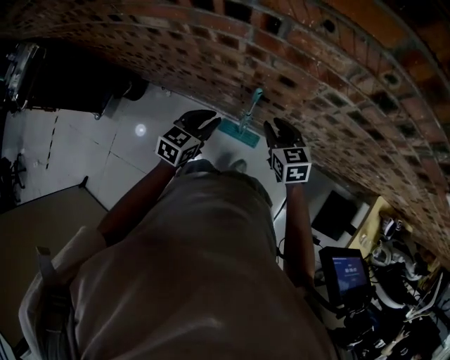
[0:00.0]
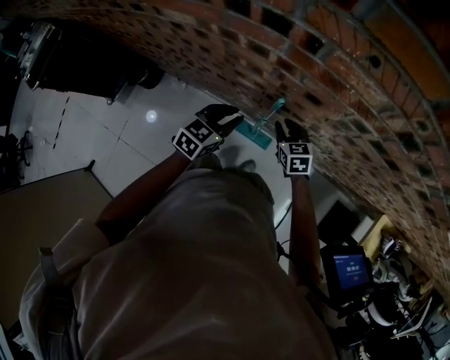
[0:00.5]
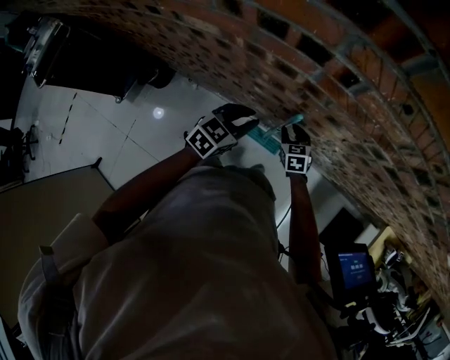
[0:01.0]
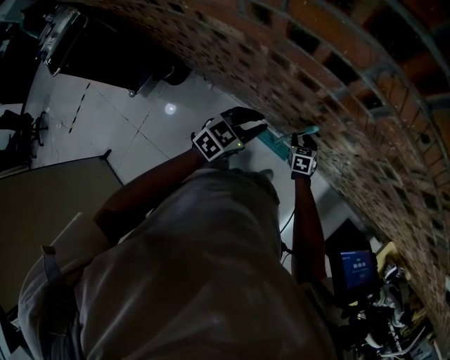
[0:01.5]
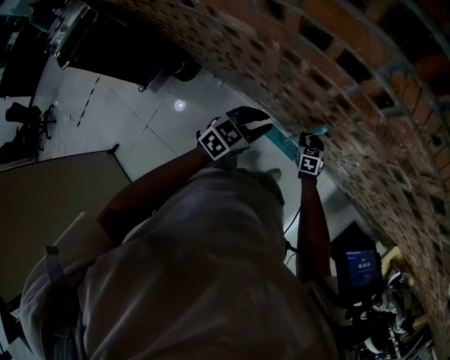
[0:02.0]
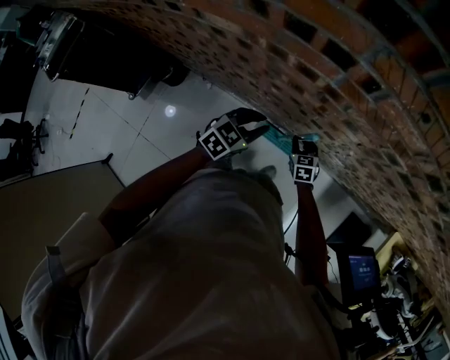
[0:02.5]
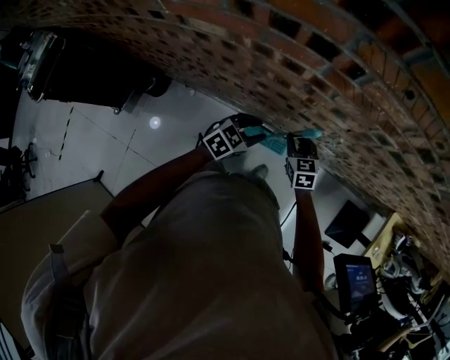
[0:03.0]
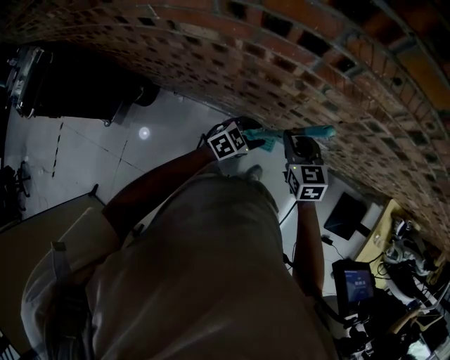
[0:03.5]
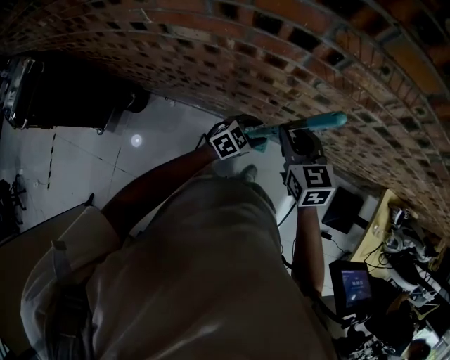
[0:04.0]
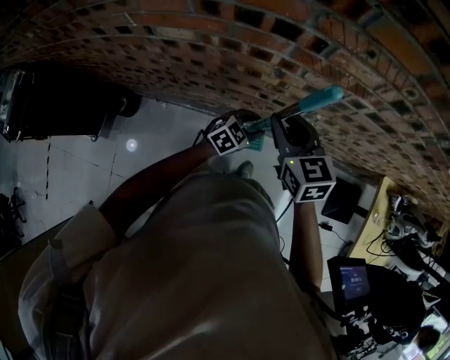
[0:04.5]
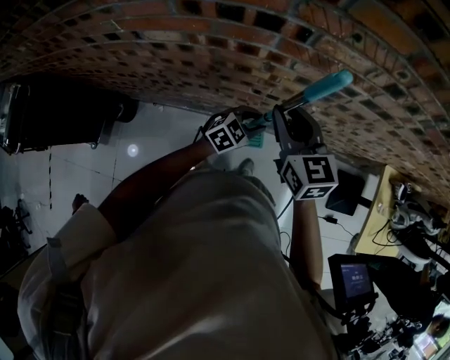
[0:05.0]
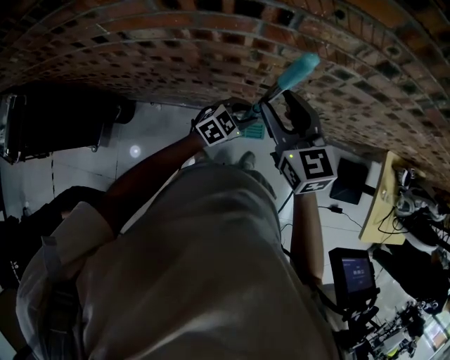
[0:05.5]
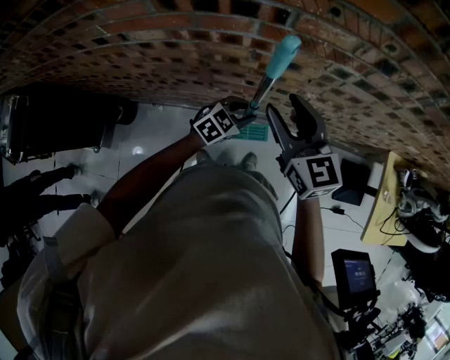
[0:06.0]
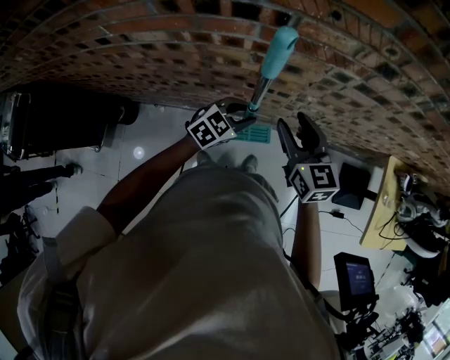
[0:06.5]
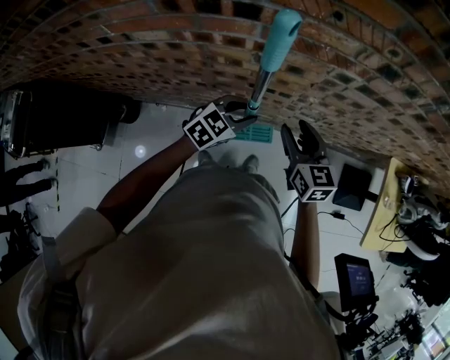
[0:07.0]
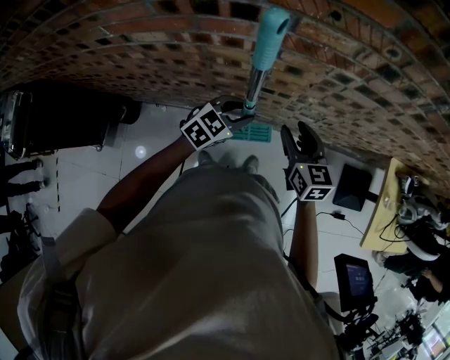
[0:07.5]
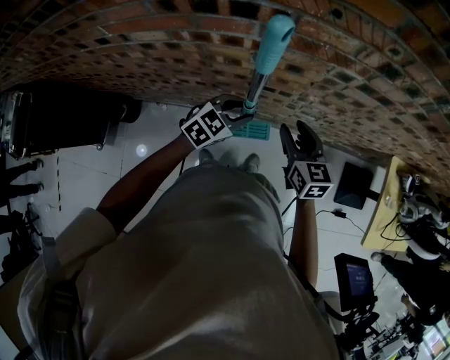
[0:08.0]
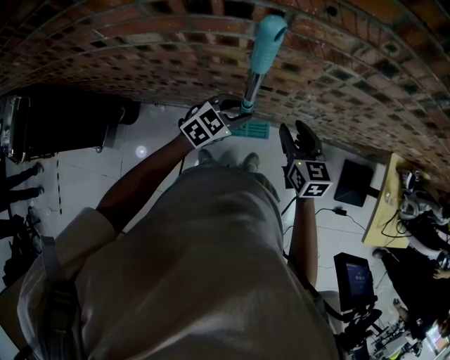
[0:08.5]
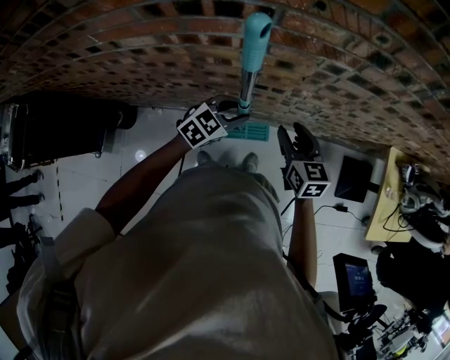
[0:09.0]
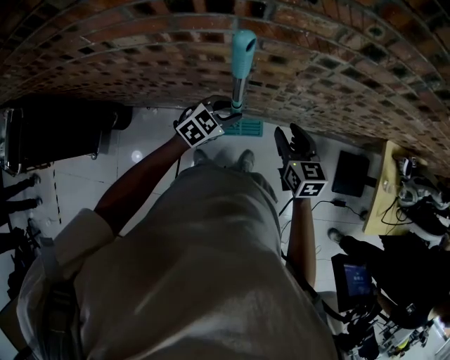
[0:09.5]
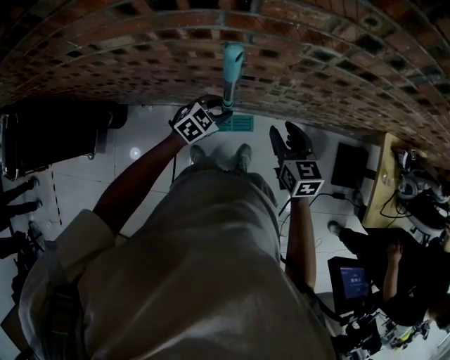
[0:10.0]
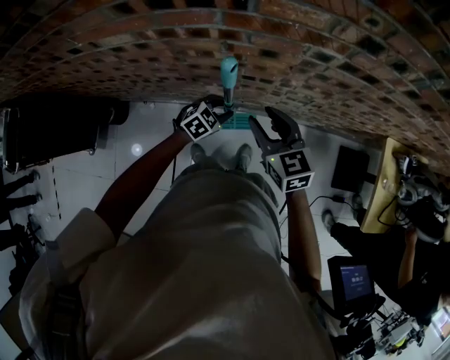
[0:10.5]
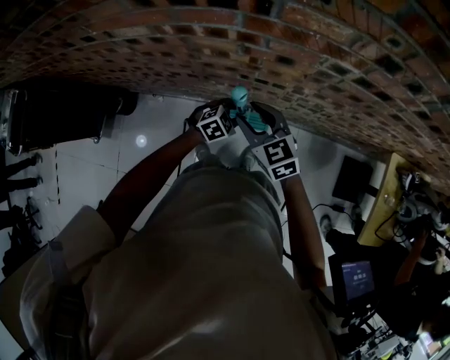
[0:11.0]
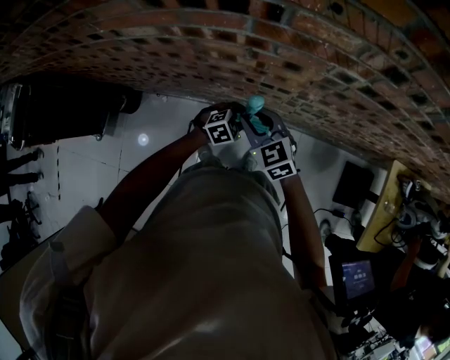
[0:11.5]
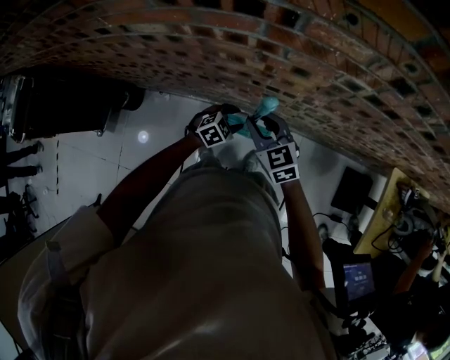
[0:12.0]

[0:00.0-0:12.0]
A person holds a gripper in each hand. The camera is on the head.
0:00.0 to 0:02.0: The right gripper travels downward by roughly 25 cm, while the left gripper goes roughly 5 cm to the left.
0:02.0 to 0:04.0: The right gripper heads upward, covering approximately 35 cm. The left gripper heads to the right, covering some 10 cm, changes its angle by about 20 degrees, and opens.
0:04.0 to 0:06.0: The right gripper heads upward, covering approximately 10 cm, and opens its fingers.
0:06.0 to 0:08.0: The right gripper heads downward and to the right, covering some 15 cm. Meanwhile the left gripper shifts by about 5 cm.
0:08.0 to 0:10.0: The right gripper moves about 5 cm; the left gripper moves downward, some 10 cm.
0:10.0 to 0:12.0: The right gripper is displaced to the left by approximately 15 cm, and rotates some 30 degrees; the left gripper heads downward, covering approximately 5 cm.

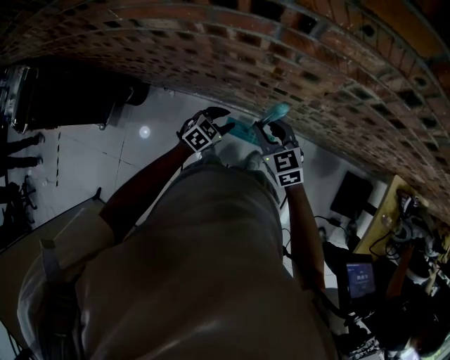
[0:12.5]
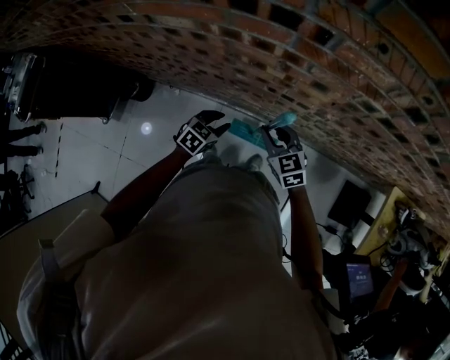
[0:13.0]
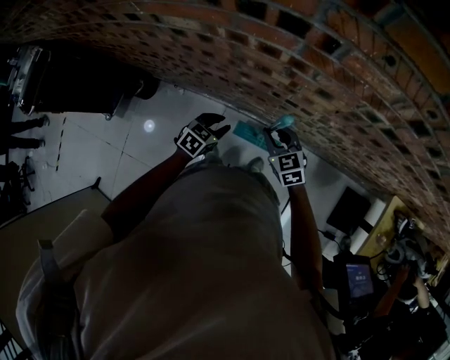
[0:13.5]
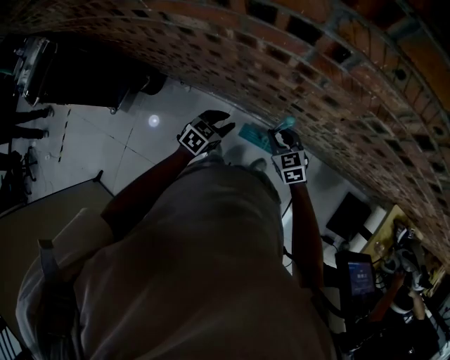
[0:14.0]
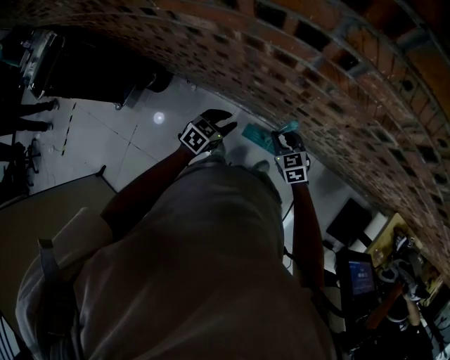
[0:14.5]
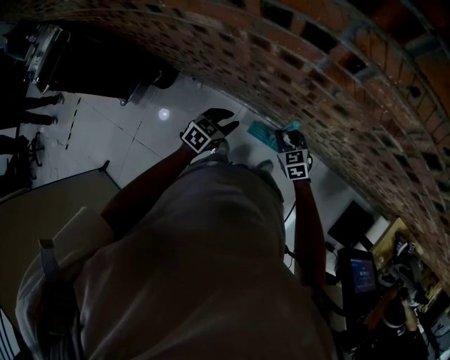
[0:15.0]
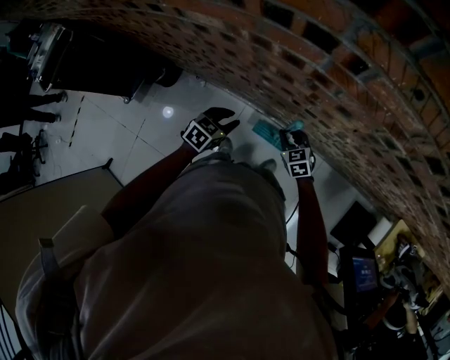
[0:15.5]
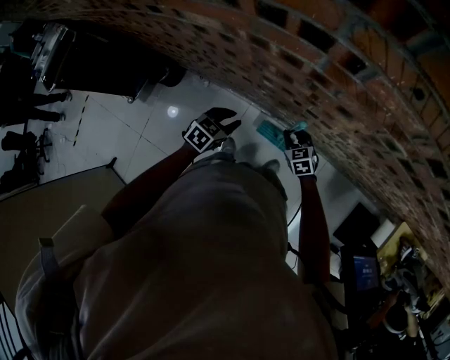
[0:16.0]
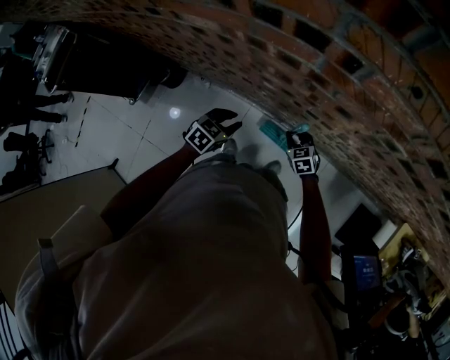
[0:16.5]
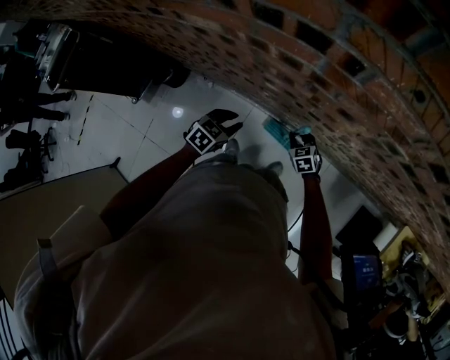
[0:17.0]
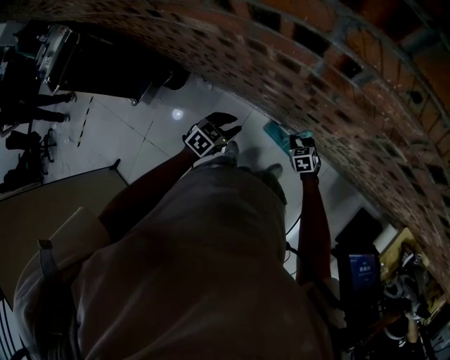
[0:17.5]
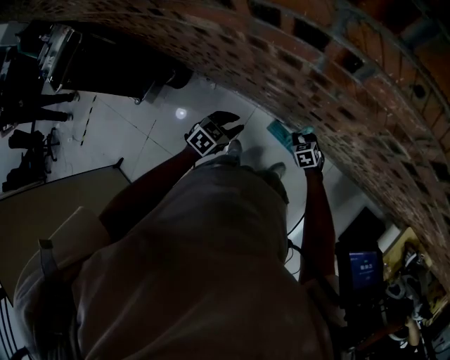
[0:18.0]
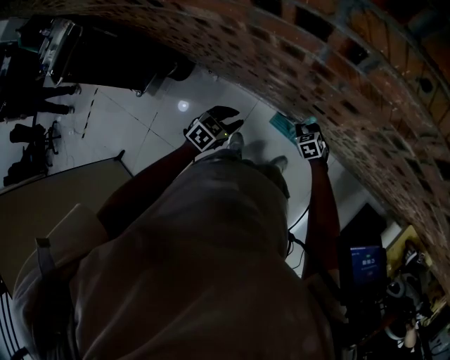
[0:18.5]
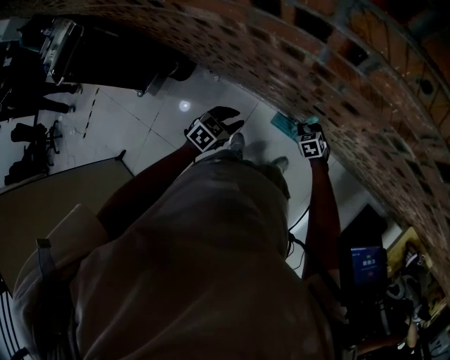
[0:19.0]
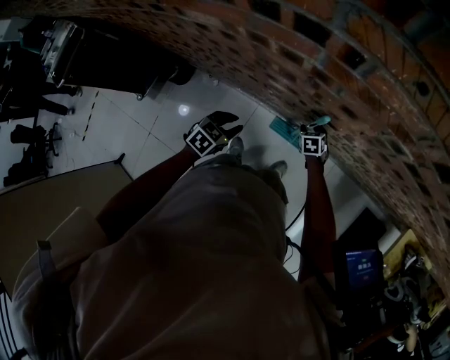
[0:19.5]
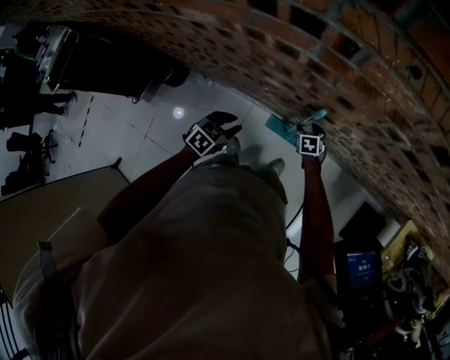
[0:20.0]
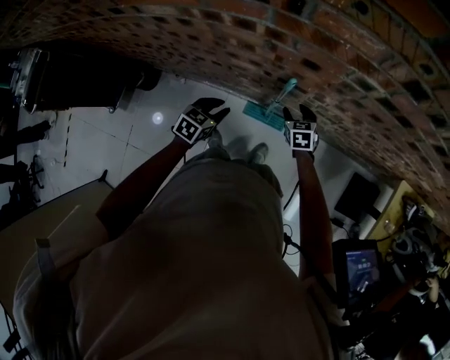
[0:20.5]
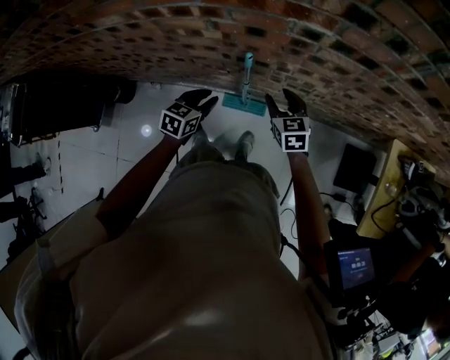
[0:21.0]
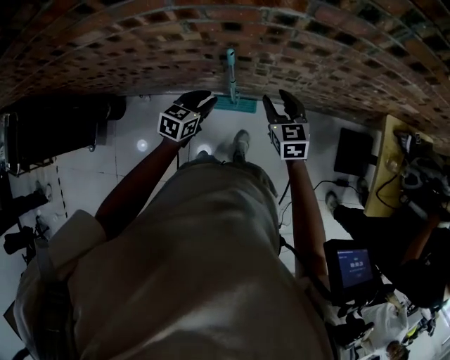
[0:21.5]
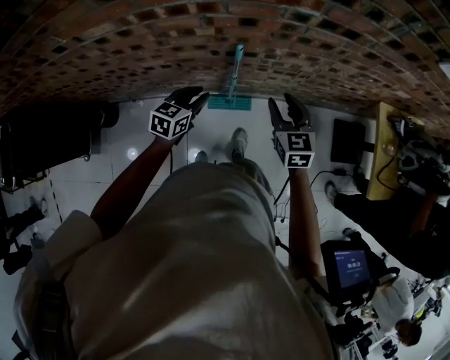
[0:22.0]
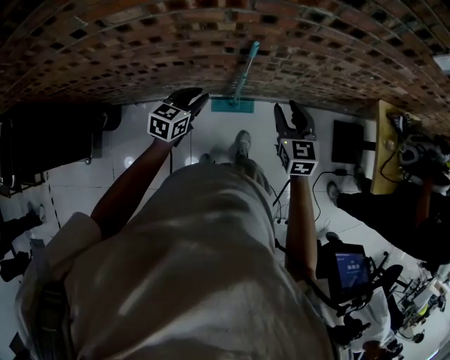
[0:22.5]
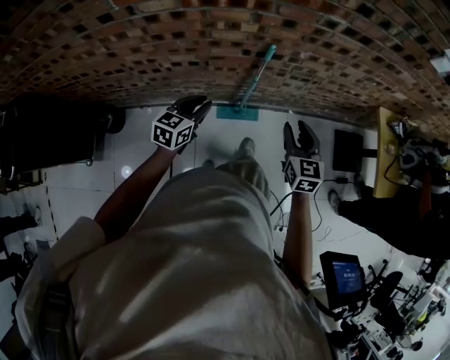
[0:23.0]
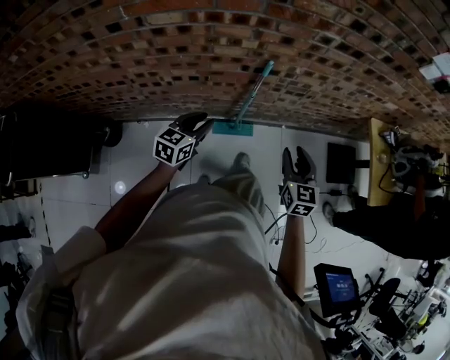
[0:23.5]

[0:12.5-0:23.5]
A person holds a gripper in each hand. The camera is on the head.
0:12.5 to 0:14.5: The right gripper goes approximately 10 cm downward. The left gripper is displaced to the left by roughly 5 cm.
0:14.5 to 0:16.0: The right gripper is displaced downward by roughly 5 cm.
0:16.0 to 0:18.0: The right gripper goes roughly 10 cm downward.
0:18.0 to 0:20.0: The right gripper turns by roughly 20 degrees, and opens.
0:20.0 to 0:21.5: The right gripper travels upward and to the right by approximately 30 cm, and swivels some 30 degrees; the left gripper moves to the right, roughly 15 cm.
0:21.5 to 0:23.5: The right gripper moves backward, approximately 20 cm, and turns by approximately 20 degrees; the left gripper heads backward, to the left and upward, covering some 20 cm.

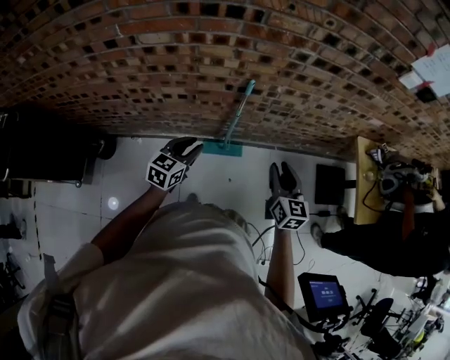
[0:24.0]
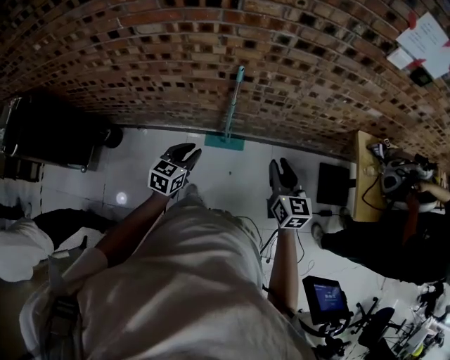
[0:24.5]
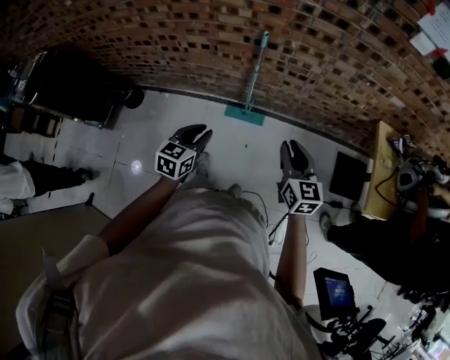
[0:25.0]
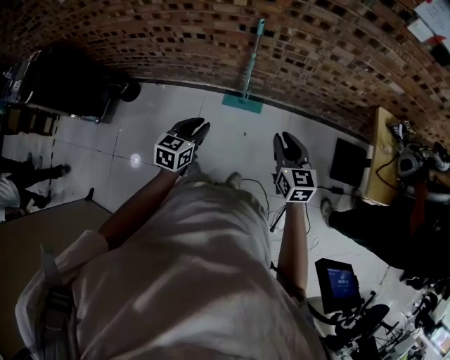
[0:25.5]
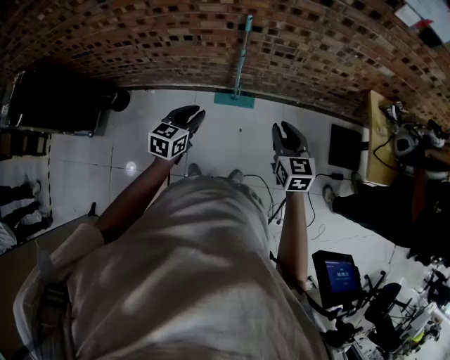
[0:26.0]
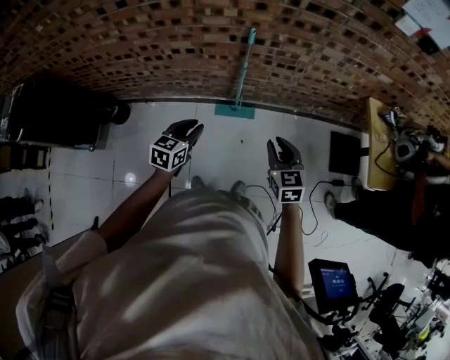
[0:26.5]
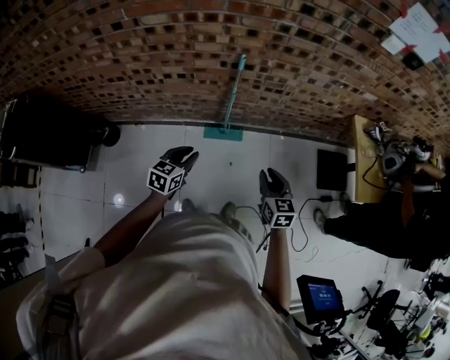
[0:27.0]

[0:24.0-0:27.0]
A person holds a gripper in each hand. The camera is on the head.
0:24.0 to 0:25.5: Both grippers travel together backward and to the right, approximately 20 cm.
0:25.5 to 0:27.0: The left gripper goes about 10 cm to the left and forward, while the right gripper moves some 5 cm.

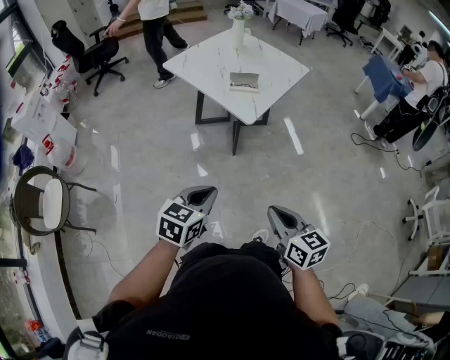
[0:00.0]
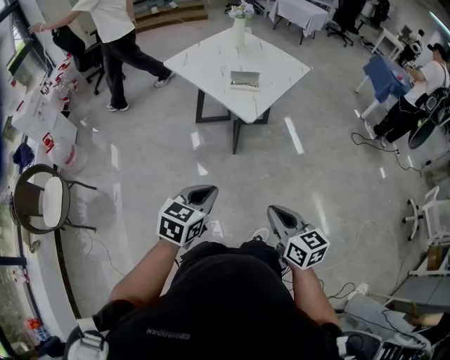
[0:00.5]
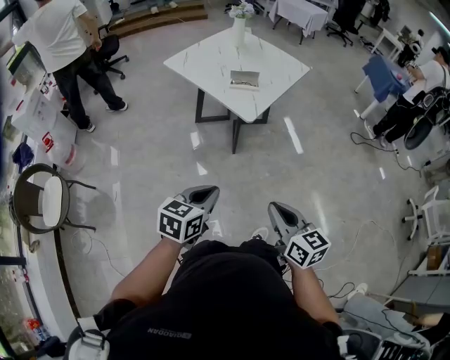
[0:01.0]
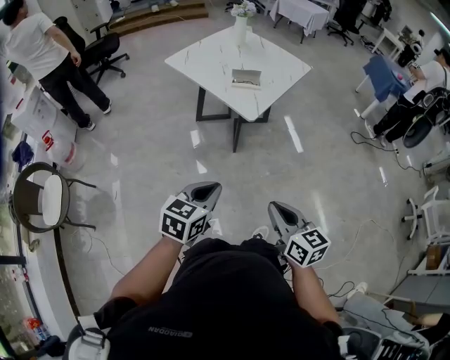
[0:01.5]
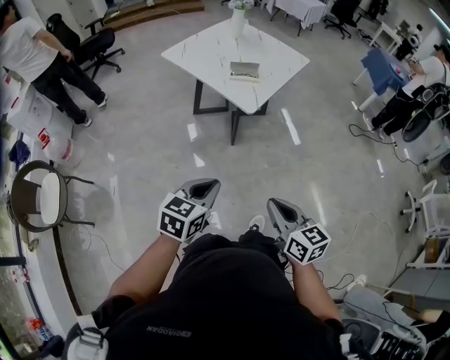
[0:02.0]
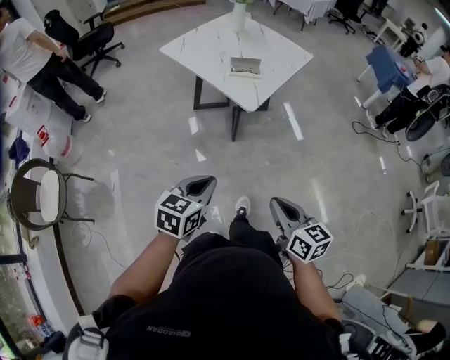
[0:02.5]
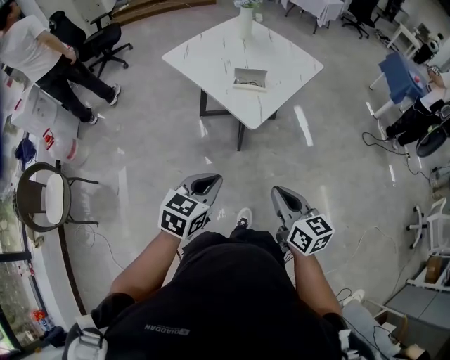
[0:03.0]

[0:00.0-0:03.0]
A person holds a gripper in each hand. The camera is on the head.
0:00.0 to 0:01.5: The grippers move only a little.
0:01.5 to 0:03.0: The two grippers go some 15 cm forward.
